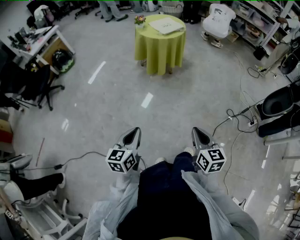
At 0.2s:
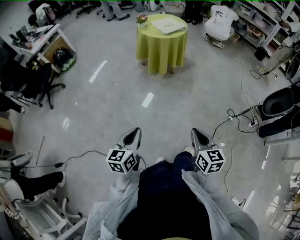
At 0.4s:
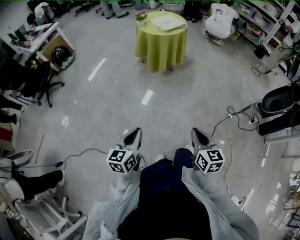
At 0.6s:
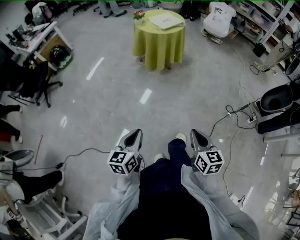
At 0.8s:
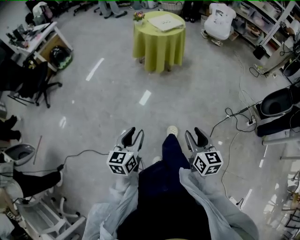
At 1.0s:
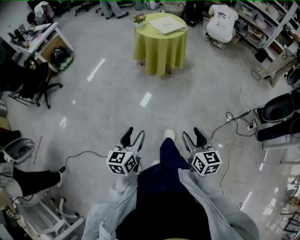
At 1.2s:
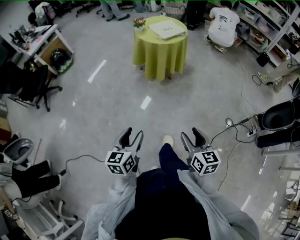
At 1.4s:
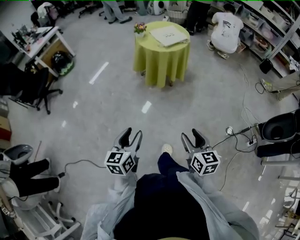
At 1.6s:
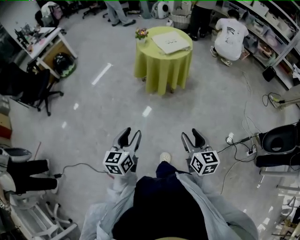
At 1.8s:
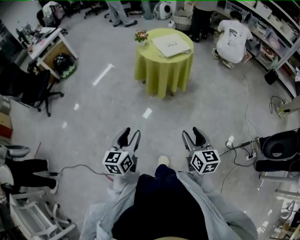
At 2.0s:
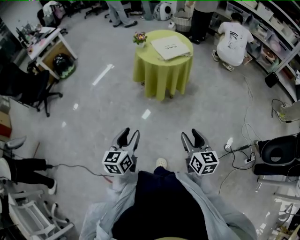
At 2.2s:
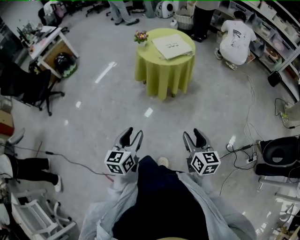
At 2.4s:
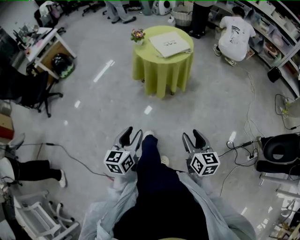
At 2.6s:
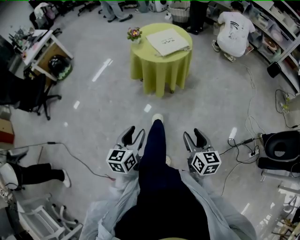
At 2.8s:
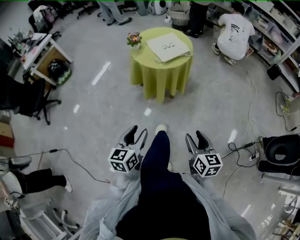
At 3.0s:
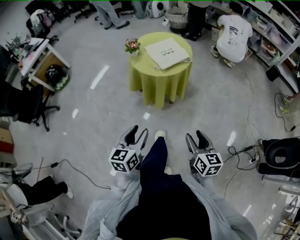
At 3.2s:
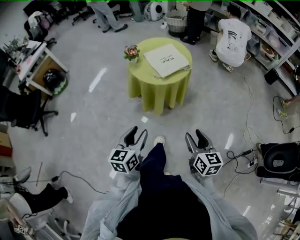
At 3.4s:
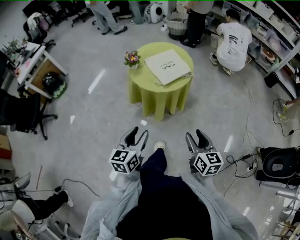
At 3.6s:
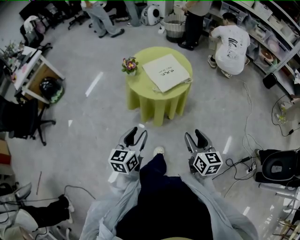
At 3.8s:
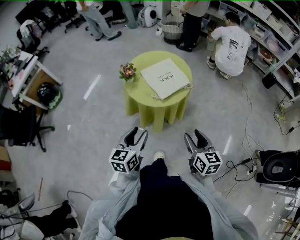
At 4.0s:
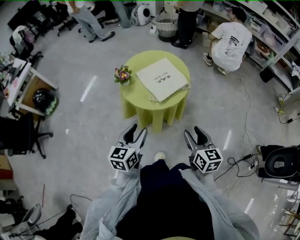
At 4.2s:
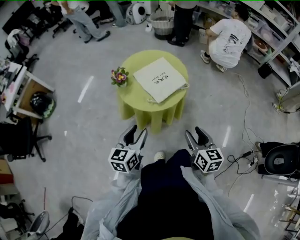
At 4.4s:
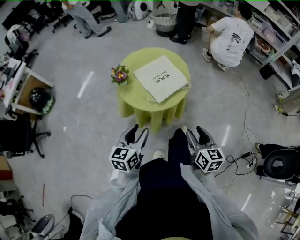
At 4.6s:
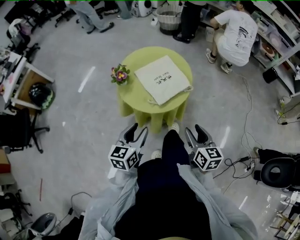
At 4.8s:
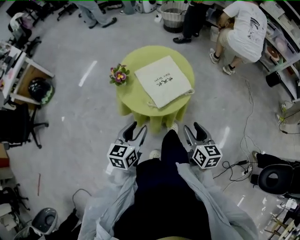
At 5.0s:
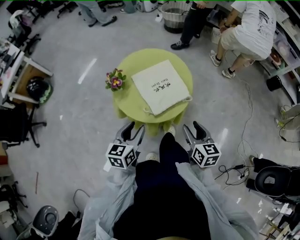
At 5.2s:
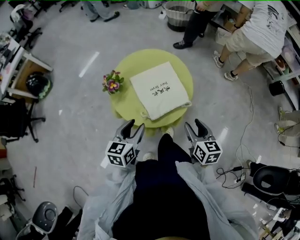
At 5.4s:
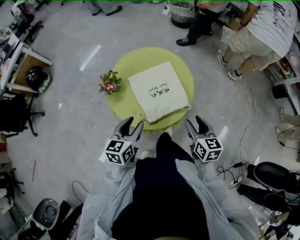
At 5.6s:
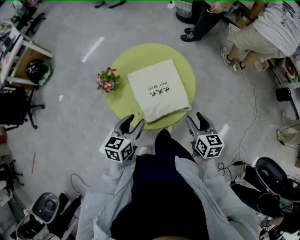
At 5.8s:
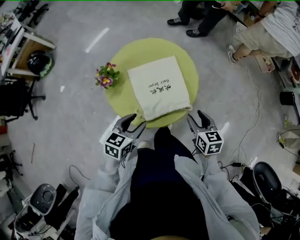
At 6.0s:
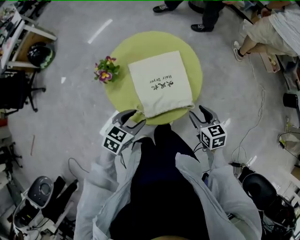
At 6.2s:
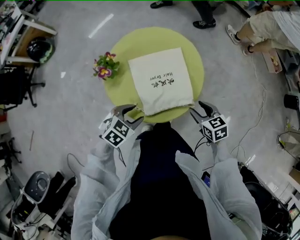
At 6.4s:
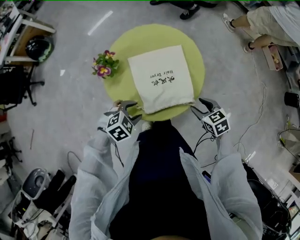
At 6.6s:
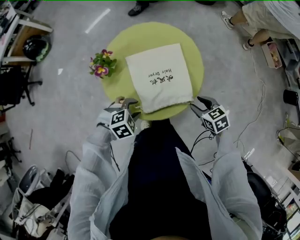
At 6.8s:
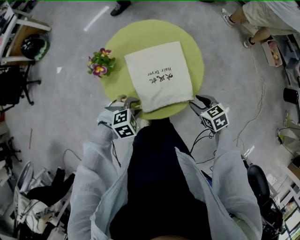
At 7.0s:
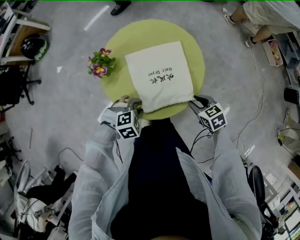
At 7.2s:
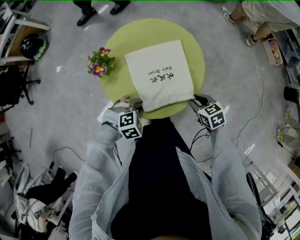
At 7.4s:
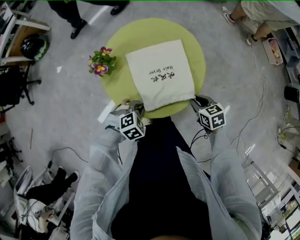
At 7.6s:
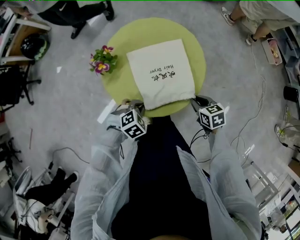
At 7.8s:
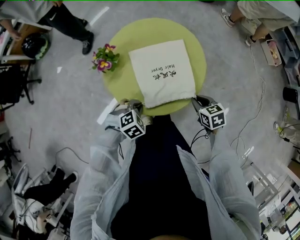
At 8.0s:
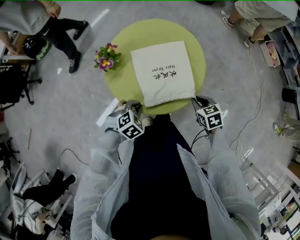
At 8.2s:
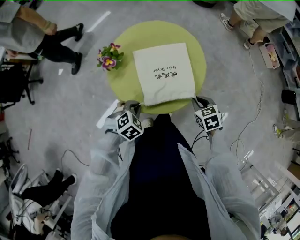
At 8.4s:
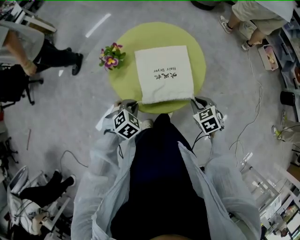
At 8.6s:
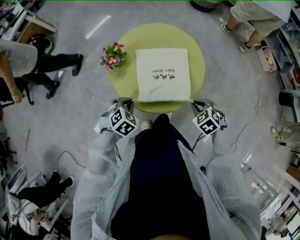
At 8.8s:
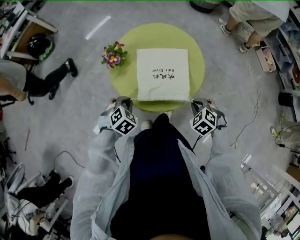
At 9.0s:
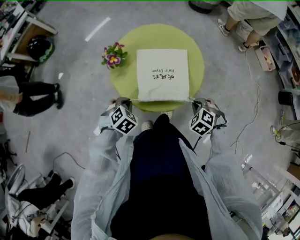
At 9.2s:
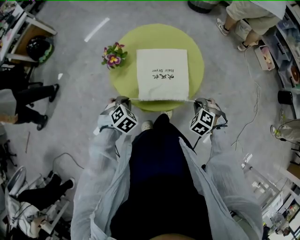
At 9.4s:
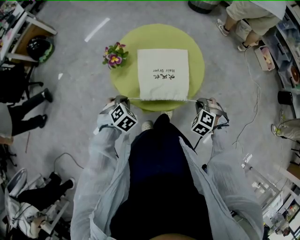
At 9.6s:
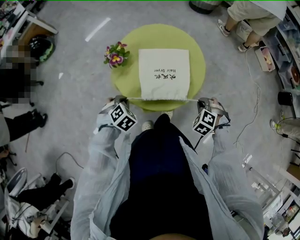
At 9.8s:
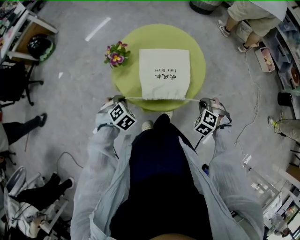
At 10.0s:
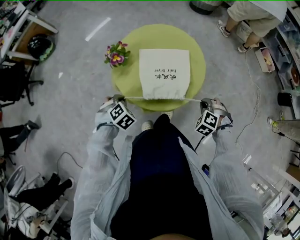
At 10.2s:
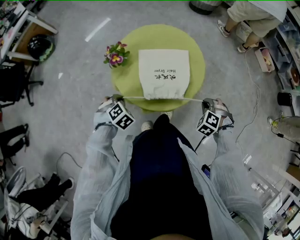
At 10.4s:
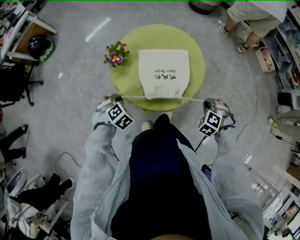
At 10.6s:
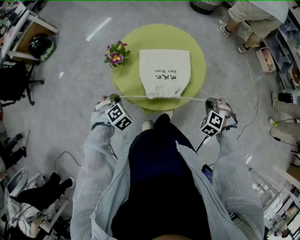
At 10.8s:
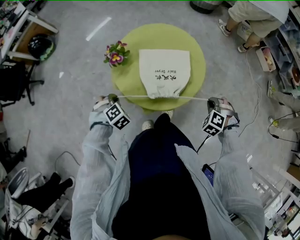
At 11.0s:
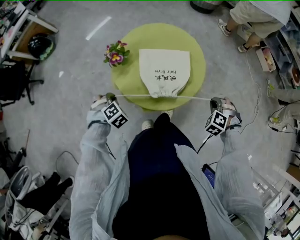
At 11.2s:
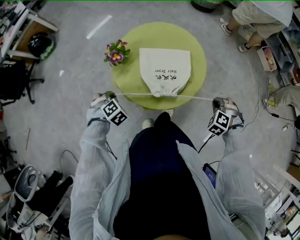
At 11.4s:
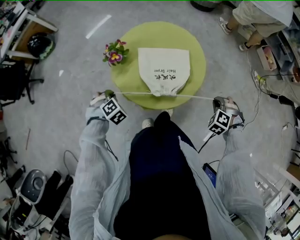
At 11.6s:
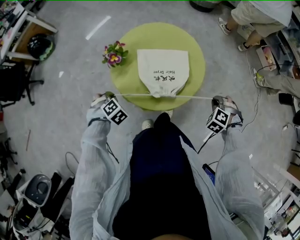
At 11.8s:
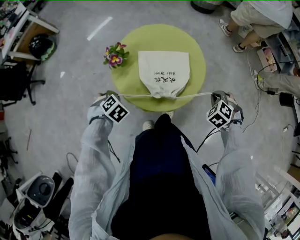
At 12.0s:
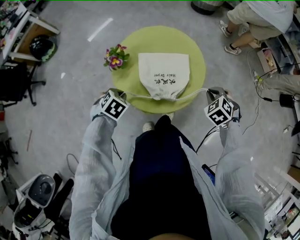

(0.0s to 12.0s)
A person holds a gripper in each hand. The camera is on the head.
0.0s - 1.6s: Both grippers move forward, approximately 20 cm. The left gripper opens up; the right gripper opens.
1.6s - 3.0s: The two grippers go roughly 20 cm forward.
3.0s - 4.4s: The two grippers go roughly 25 cm forward.
4.4s - 6.0s: The left gripper is displaced forward, downward and to the right by approximately 20 cm, and swivels some 30 degrees. The right gripper moves forward, roughly 25 cm, and changes its angle by roughly 40 degrees.
6.0s - 7.6s: The left gripper goes about 10 cm downward, rotates roughly 40 degrees, and closes its fingers; the right gripper goes roughly 5 cm downward, and closes.
7.6s - 9.0s: The left gripper shifts about 10 cm to the left. Meanwhile the right gripper rolls counterclockwise, seen from behind, by about 50 degrees.
9.0s - 10.4s: The left gripper travels to the left by roughly 5 cm. Meanwhile the right gripper goes roughly 5 cm to the right.
10.4s - 12.0s: The right gripper changes place by some 10 cm, and rotates roughly 20 degrees, while the left gripper shifts by some 5 cm, and changes its angle by some 20 degrees.

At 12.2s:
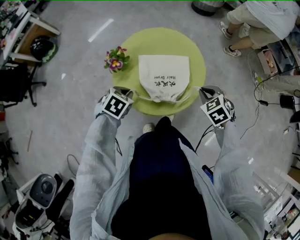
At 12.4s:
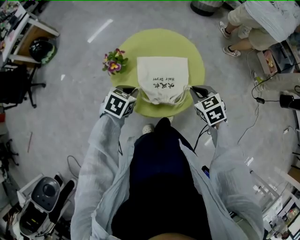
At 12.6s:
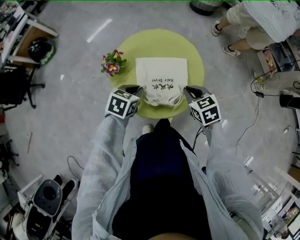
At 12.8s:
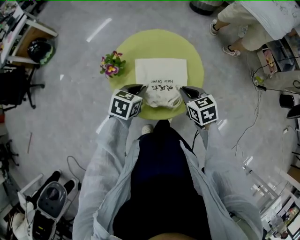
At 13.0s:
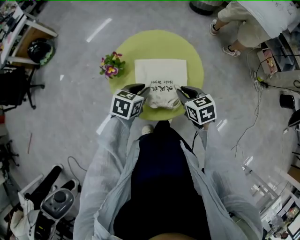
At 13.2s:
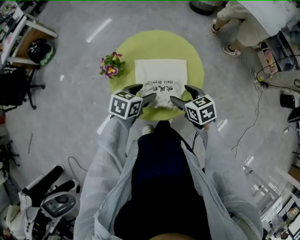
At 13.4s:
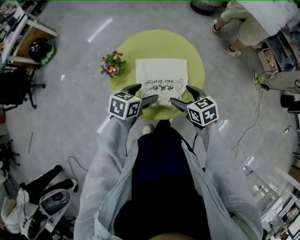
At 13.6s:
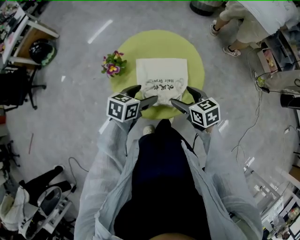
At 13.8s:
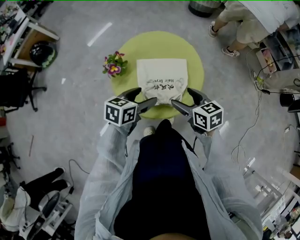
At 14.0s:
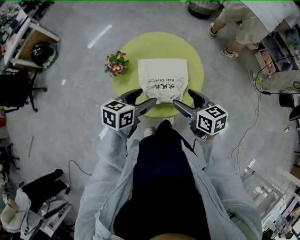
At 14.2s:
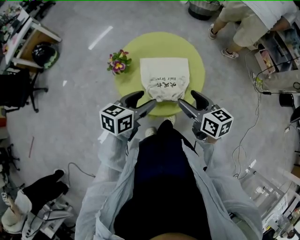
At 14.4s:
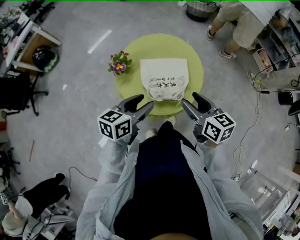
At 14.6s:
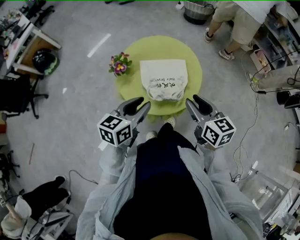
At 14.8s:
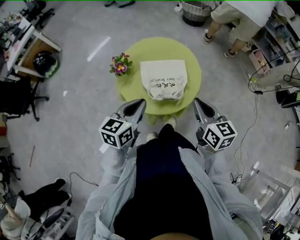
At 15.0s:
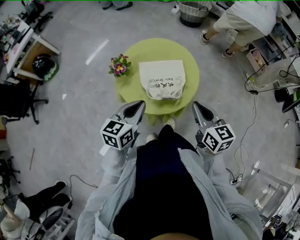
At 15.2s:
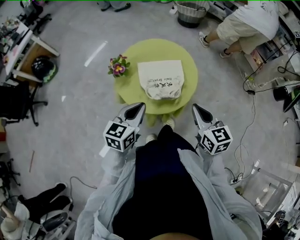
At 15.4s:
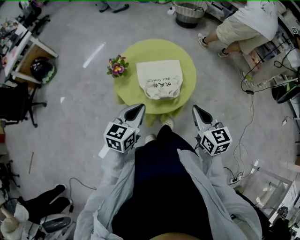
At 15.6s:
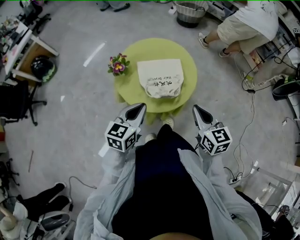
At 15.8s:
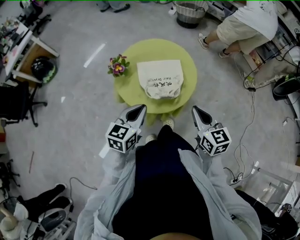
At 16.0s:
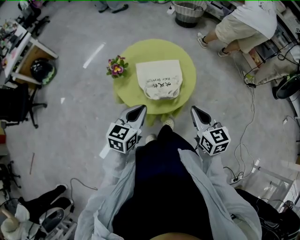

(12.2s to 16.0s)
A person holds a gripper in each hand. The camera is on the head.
12.2s - 13.4s: The left gripper is displaced to the right by about 10 cm, rotates roughly 30 degrees, and opens up; the right gripper moves to the left, approximately 10 cm, changes its angle by about 30 degrees, and opens its fingers.
13.4s - 14.8s: Both grippers move upward and backward, roughly 15 cm. The left gripper changes its angle by roughly 20 degrees, and closes up. The right gripper changes its angle by about 30 degrees, and closes.
14.8s - 16.0s: The grippers stay close to where they were, moving slightly.

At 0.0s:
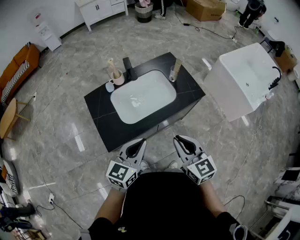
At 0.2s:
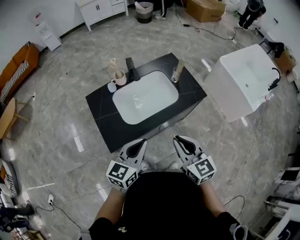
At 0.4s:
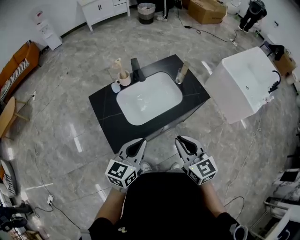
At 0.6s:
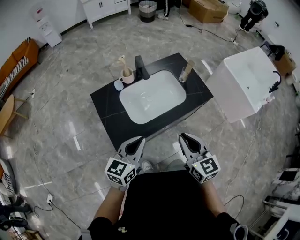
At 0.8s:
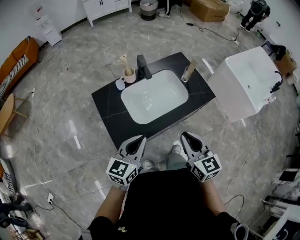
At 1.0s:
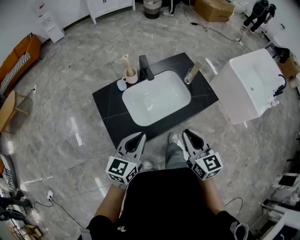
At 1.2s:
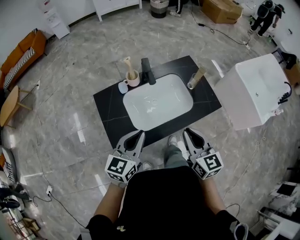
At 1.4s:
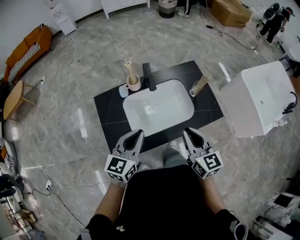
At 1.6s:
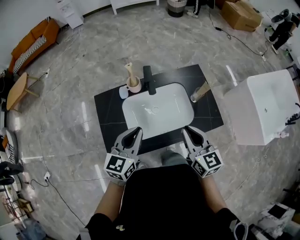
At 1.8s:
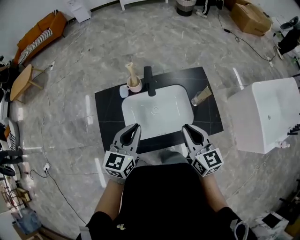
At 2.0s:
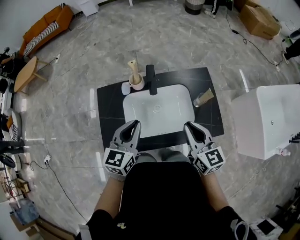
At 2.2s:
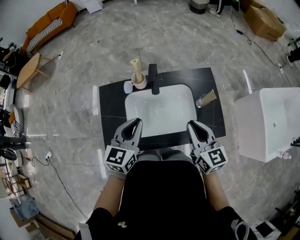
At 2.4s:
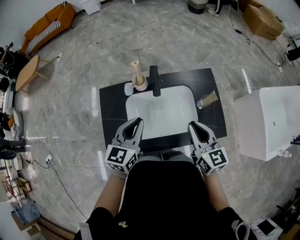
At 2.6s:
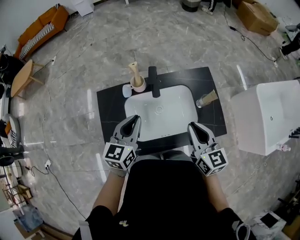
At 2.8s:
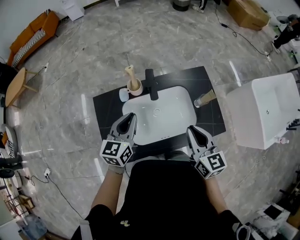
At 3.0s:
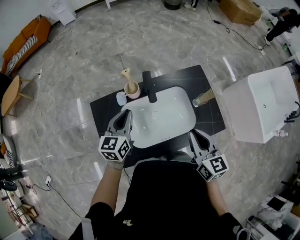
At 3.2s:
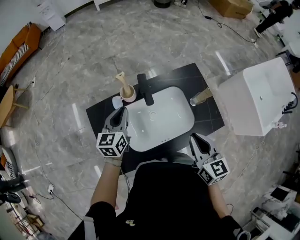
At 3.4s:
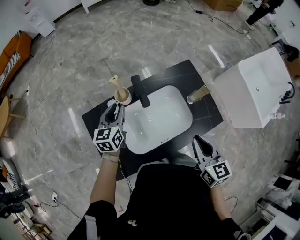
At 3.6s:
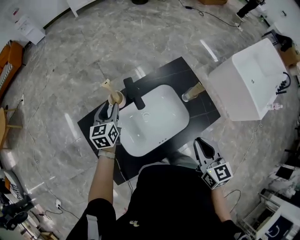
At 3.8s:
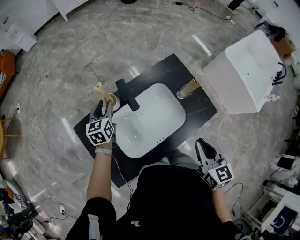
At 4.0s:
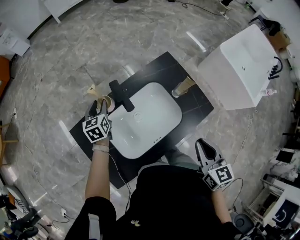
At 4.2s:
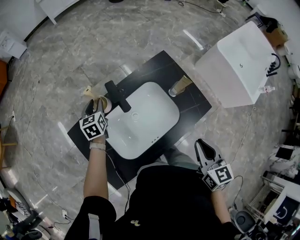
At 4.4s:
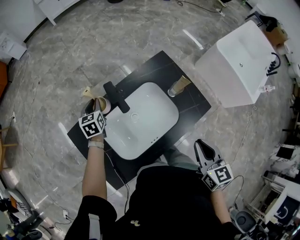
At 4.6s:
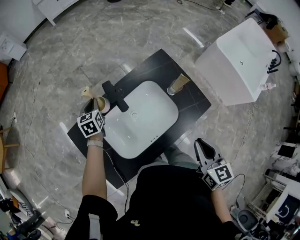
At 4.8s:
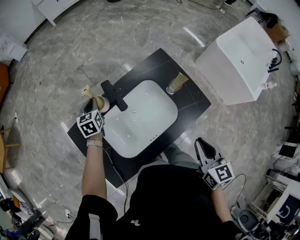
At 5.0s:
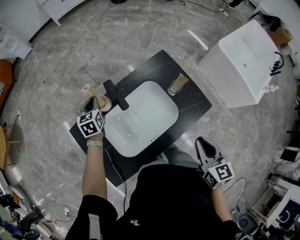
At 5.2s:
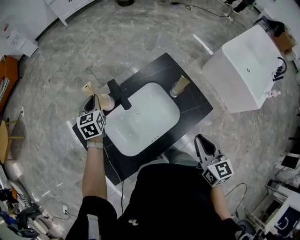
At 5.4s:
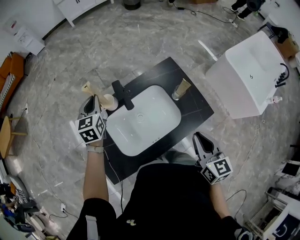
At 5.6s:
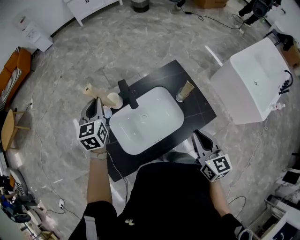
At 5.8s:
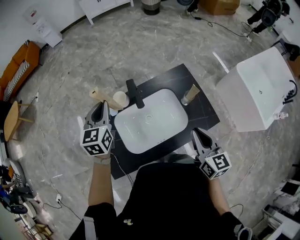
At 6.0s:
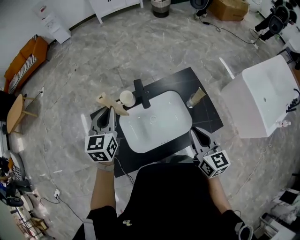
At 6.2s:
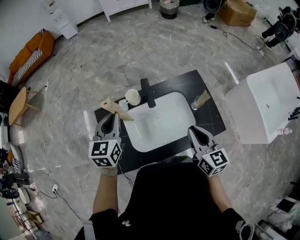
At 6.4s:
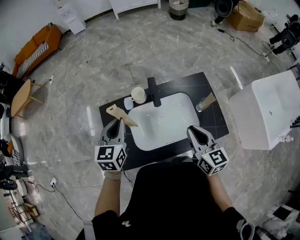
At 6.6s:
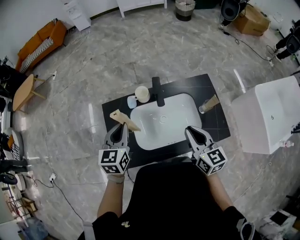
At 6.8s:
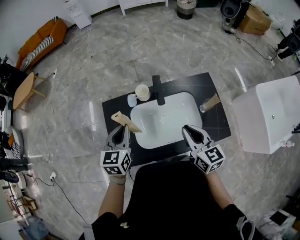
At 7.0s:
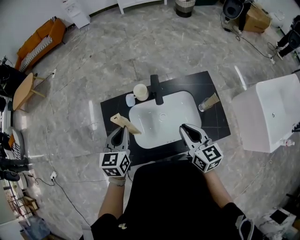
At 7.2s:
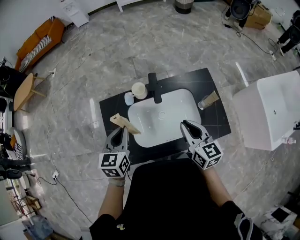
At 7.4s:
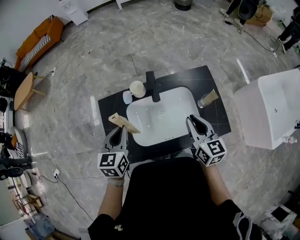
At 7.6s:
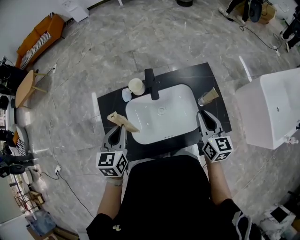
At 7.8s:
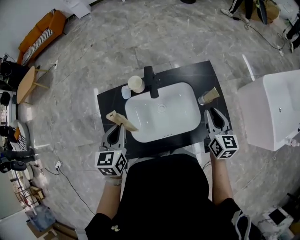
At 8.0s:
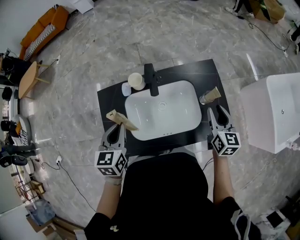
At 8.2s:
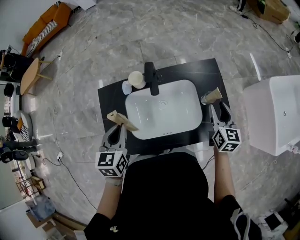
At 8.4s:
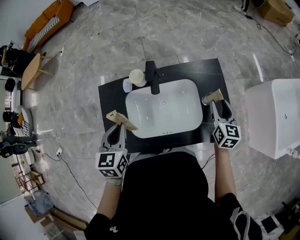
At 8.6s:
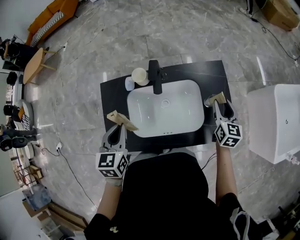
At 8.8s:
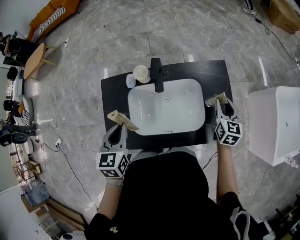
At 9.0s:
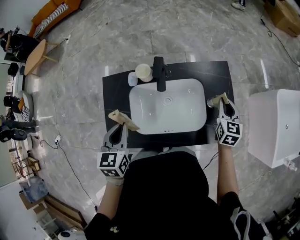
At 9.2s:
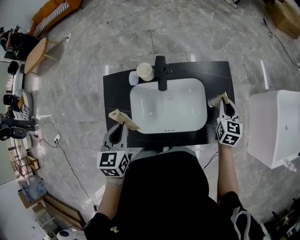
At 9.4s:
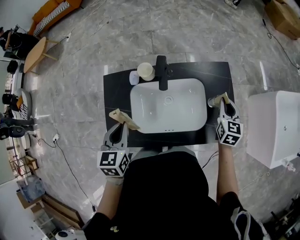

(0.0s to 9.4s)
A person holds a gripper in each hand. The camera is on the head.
0.0s - 1.6s: The grippers both shift forward by about 20 cm.
1.6s - 3.2s: The left gripper heads forward and downward, covering roughly 20 cm.
3.2s - 4.8s: The left gripper goes about 20 cm forward and downward, swivels some 20 degrees, and opens and closes again. Meanwhile the right gripper shifts approximately 10 cm to the right and backward, and swivels some 20 degrees.
4.8s - 6.2s: The right gripper travels forward and to the left by some 10 cm, and turns by roughly 30 degrees, while the left gripper is displaced upward and backward by roughly 30 cm.
6.2s - 7.8s: The right gripper moves to the right, downward and forward, approximately 15 cm; the left gripper moves backward and downward, roughly 10 cm.
7.8s - 9.4s: The right gripper travels forward and downward by roughly 10 cm, and opens, then closes once more.
